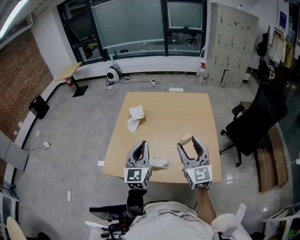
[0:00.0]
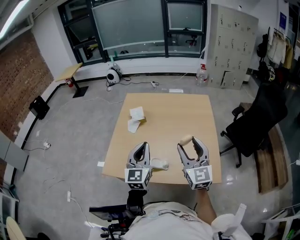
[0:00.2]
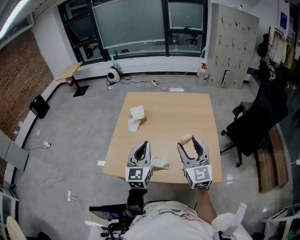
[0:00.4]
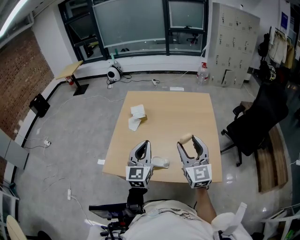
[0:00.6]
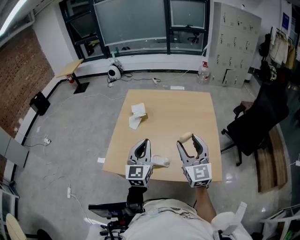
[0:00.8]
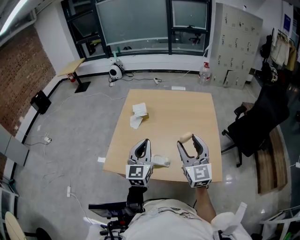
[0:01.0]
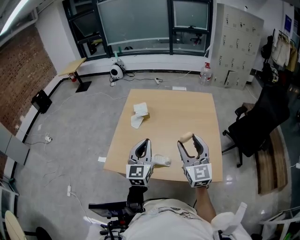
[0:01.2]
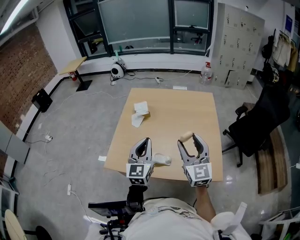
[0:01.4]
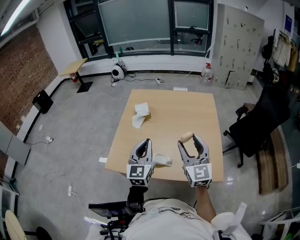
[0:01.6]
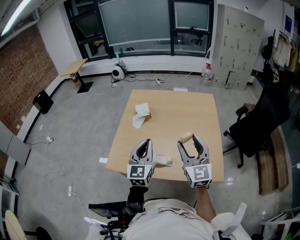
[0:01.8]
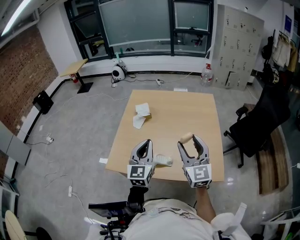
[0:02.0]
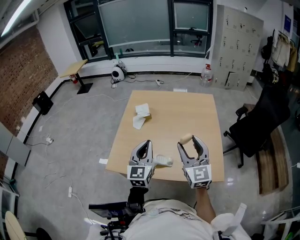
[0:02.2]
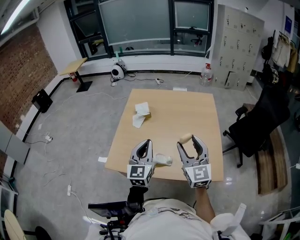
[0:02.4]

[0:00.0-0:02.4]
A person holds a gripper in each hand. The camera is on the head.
0:00.0 to 0:02.4: There are only small adjustments of the grippers.

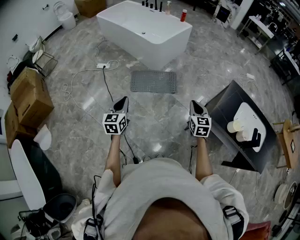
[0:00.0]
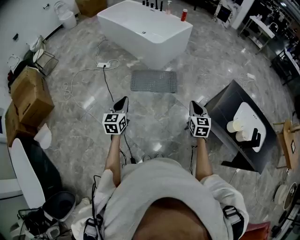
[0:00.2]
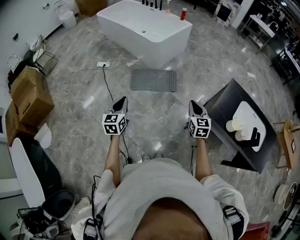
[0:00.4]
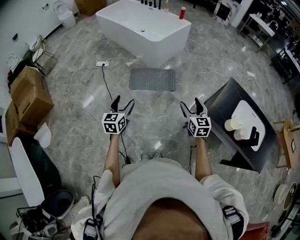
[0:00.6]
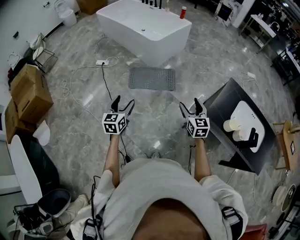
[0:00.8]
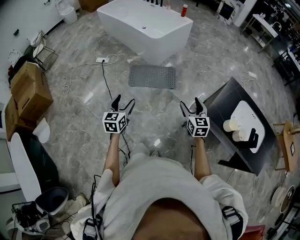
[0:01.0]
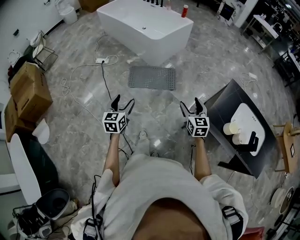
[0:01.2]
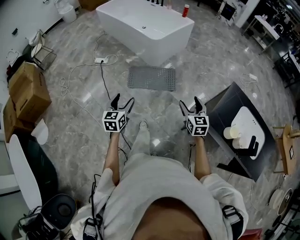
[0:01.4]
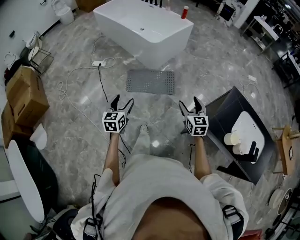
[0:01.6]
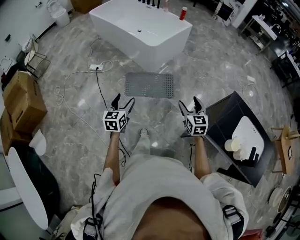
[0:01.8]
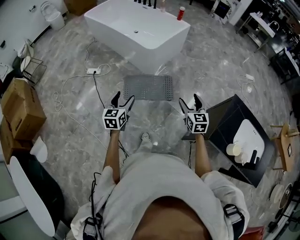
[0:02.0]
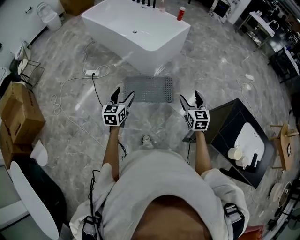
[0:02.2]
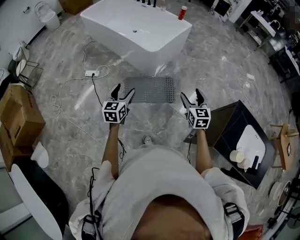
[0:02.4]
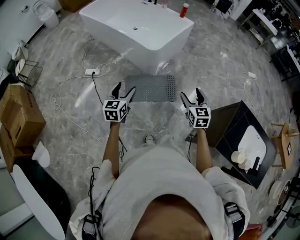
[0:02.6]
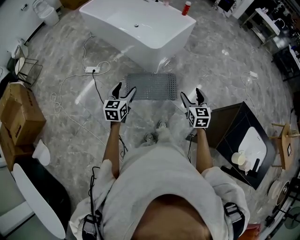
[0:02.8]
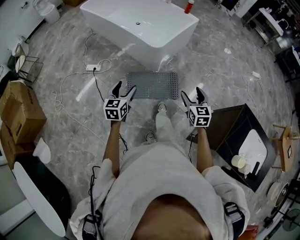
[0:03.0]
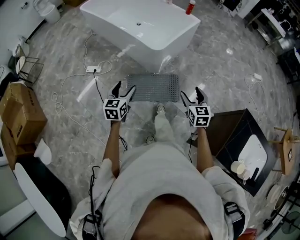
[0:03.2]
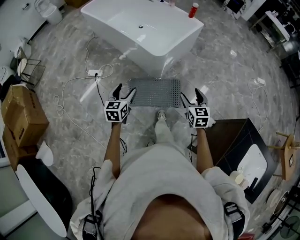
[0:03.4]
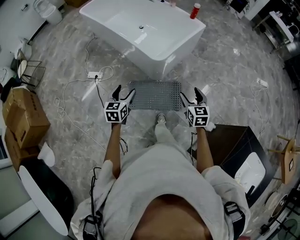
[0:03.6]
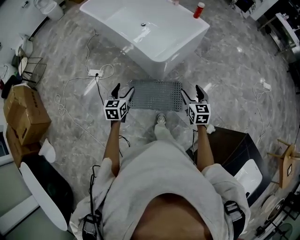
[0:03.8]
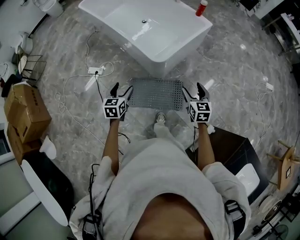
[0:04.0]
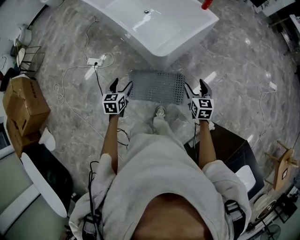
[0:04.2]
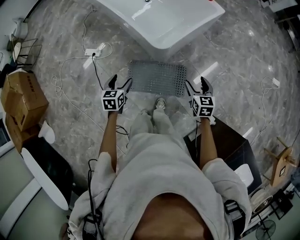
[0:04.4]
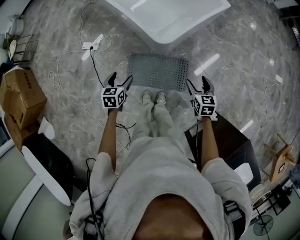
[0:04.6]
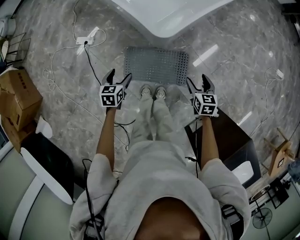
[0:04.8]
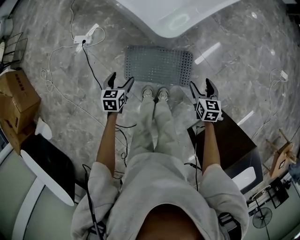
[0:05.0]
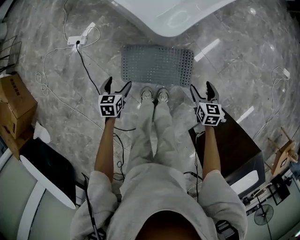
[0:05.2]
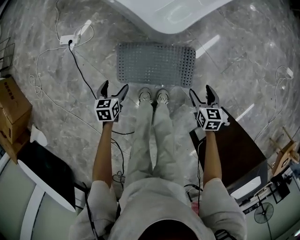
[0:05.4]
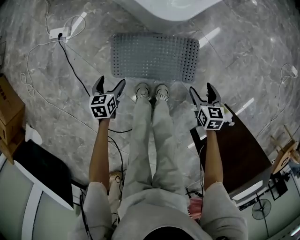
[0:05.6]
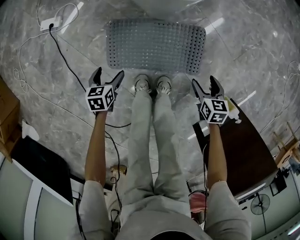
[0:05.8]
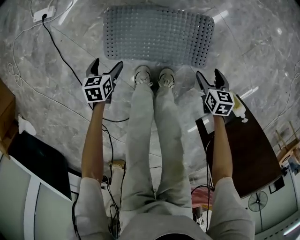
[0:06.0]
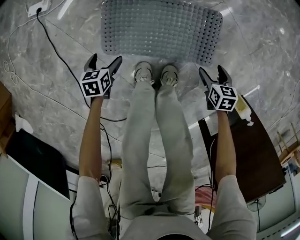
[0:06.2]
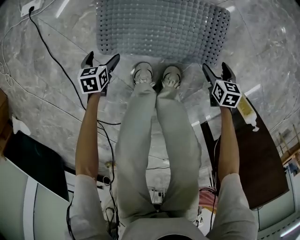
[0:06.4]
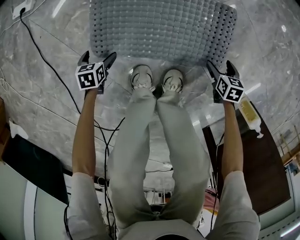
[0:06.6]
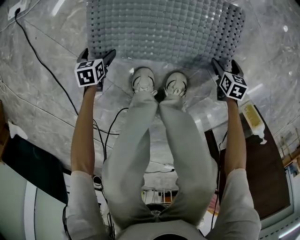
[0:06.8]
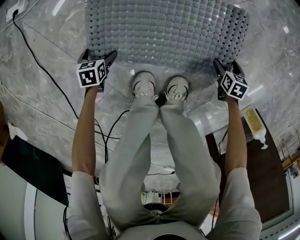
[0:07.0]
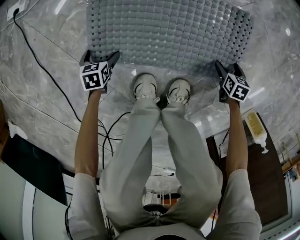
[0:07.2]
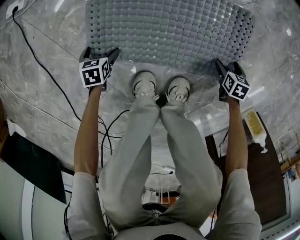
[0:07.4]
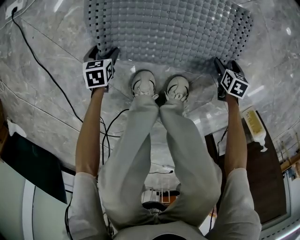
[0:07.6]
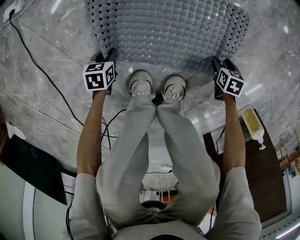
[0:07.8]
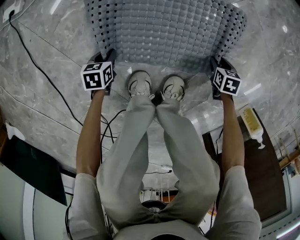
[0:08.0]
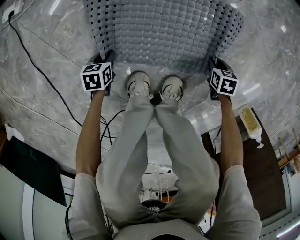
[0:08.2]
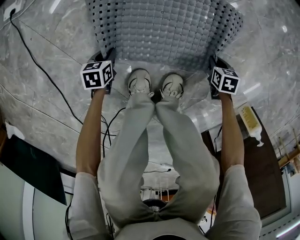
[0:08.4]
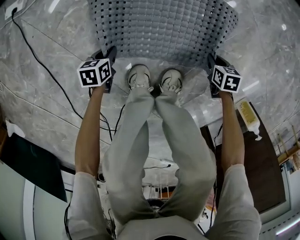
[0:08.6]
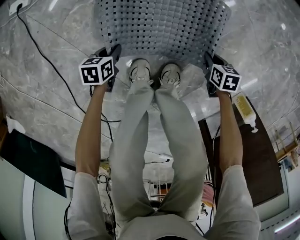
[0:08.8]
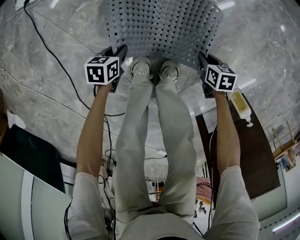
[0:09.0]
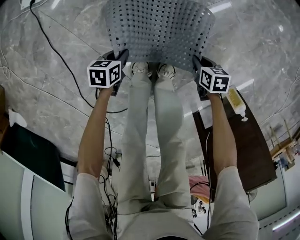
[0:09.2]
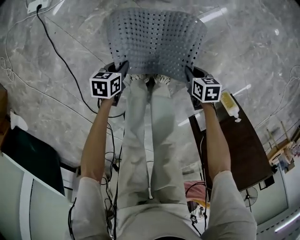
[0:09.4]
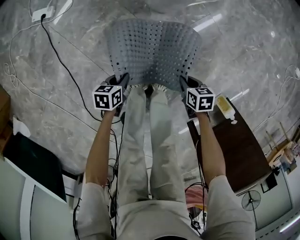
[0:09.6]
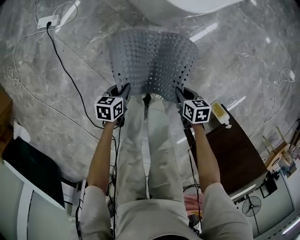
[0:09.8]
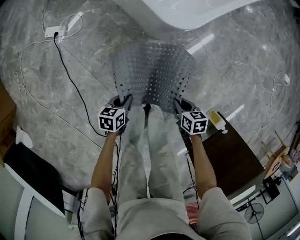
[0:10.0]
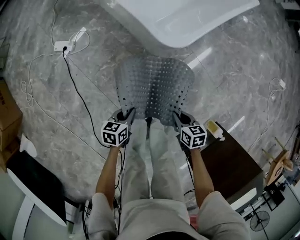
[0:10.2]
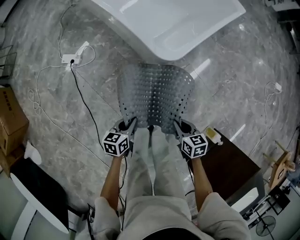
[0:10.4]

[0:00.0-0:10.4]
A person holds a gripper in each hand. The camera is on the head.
0:00.0 to 0:01.4: The left gripper ends up some 10 cm from where it was, and opens up. The right gripper is displaced forward by about 5 cm, and opens up.
0:01.4 to 0:03.0: Both grippers travel together forward, roughly 30 cm.
0:03.0 to 0:04.4: The left gripper travels forward and downward by roughly 30 cm, and rotates roughly 20 degrees. The right gripper moves forward, approximately 30 cm.
0:04.4 to 0:06.0: Both grippers move downward, approximately 50 cm. The right gripper swivels about 30 degrees. The left gripper rotates approximately 20 degrees.
0:06.0 to 0:07.4: The two grippers go some 30 cm downward.
0:07.4 to 0:09.0: The two grippers go about 15 cm upward. The right gripper closes up; the left gripper turns by roughly 20 degrees, and closes its fingers.
0:09.0 to 0:10.4: The two grippers go some 40 cm upward. The right gripper swivels approximately 20 degrees, while the left gripper turns by about 20 degrees.

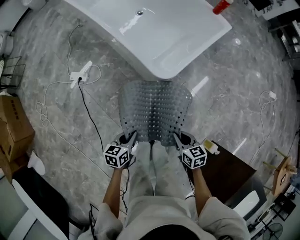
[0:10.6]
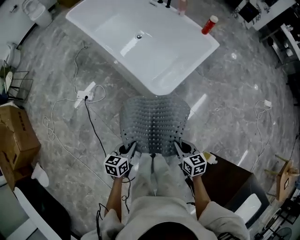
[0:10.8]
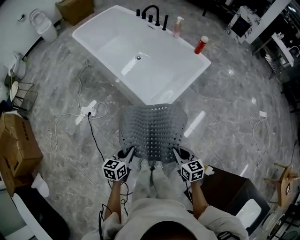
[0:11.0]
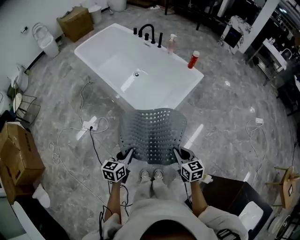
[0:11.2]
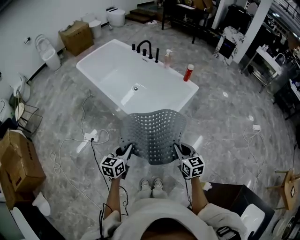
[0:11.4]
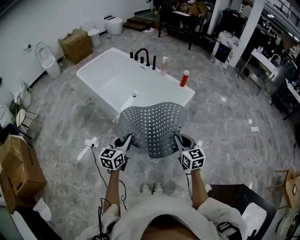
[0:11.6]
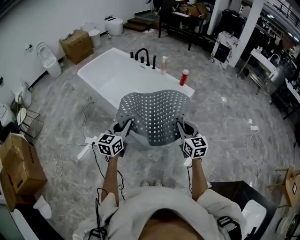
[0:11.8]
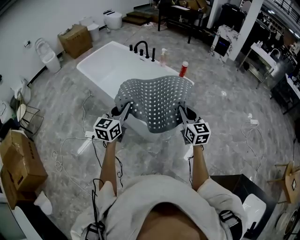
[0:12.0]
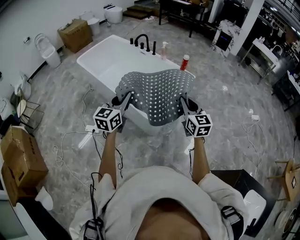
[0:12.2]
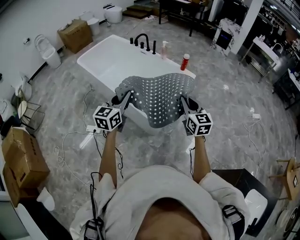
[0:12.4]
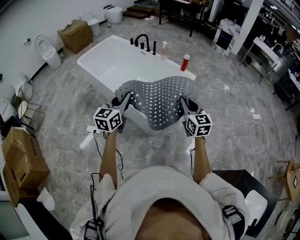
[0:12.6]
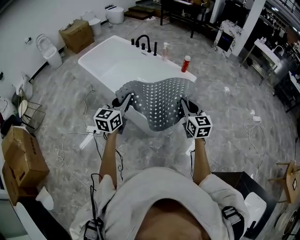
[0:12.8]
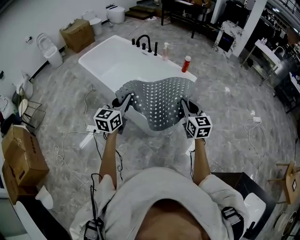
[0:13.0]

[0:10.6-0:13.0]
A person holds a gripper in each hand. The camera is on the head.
0:10.6 to 0:11.8: Both grippers travel together upward, approximately 40 cm. The left gripper turns by roughly 40 degrees, while the right gripper tips its fingers upward by some 30 degrees.
0:11.8 to 0:13.0: There are only small adjustments of the grippers.

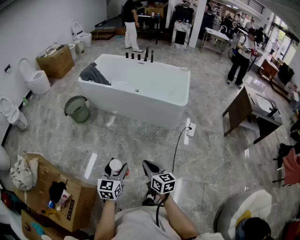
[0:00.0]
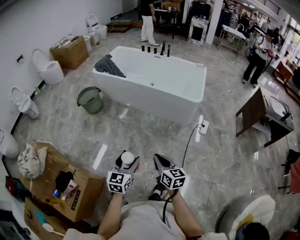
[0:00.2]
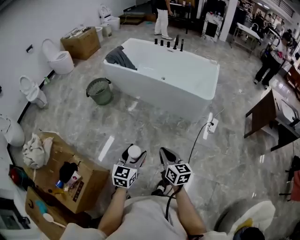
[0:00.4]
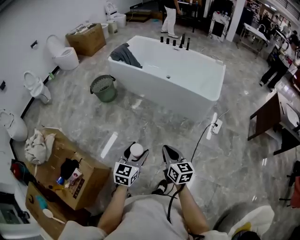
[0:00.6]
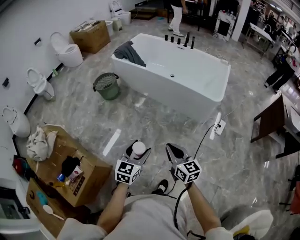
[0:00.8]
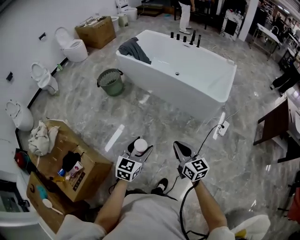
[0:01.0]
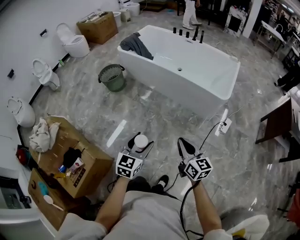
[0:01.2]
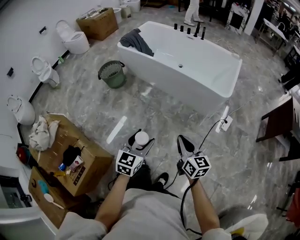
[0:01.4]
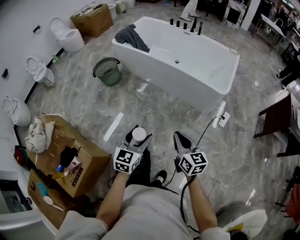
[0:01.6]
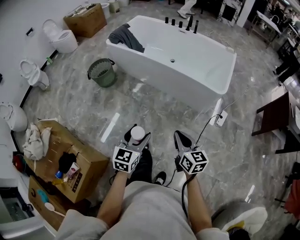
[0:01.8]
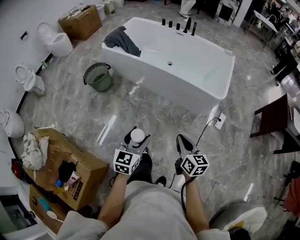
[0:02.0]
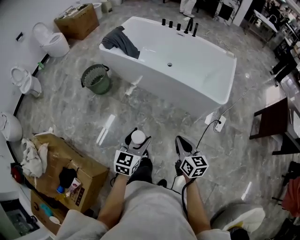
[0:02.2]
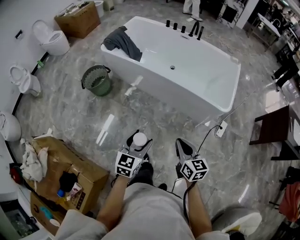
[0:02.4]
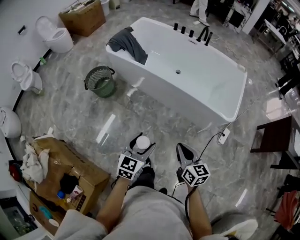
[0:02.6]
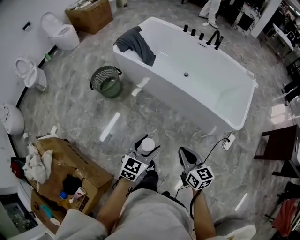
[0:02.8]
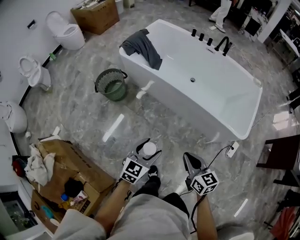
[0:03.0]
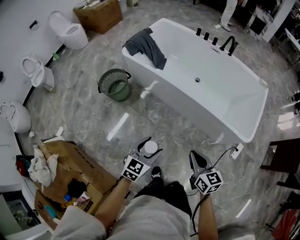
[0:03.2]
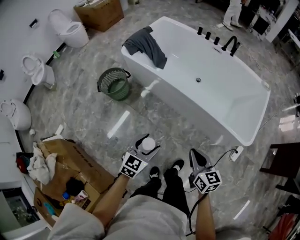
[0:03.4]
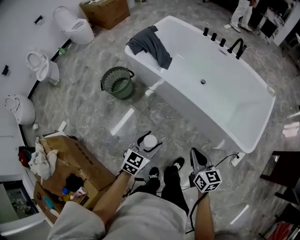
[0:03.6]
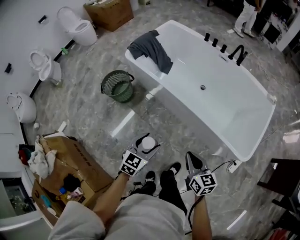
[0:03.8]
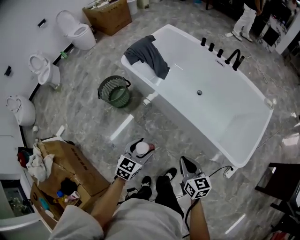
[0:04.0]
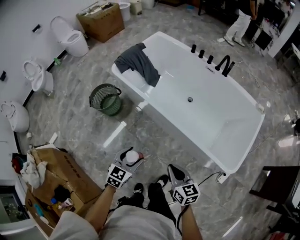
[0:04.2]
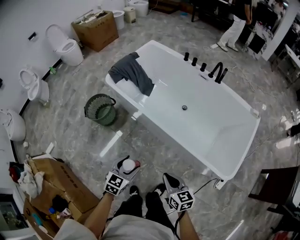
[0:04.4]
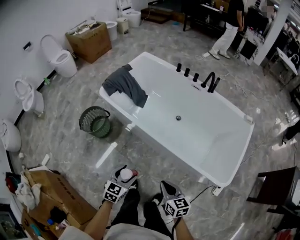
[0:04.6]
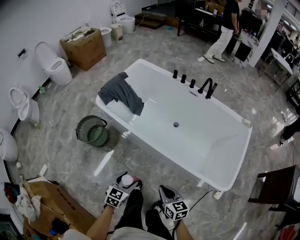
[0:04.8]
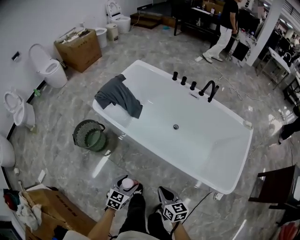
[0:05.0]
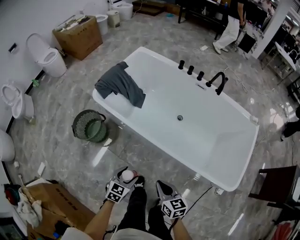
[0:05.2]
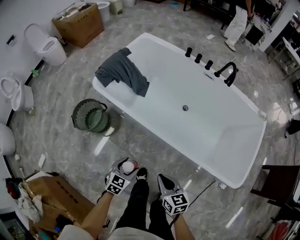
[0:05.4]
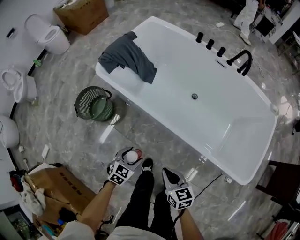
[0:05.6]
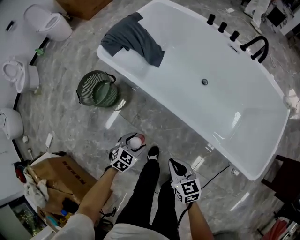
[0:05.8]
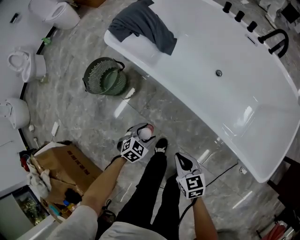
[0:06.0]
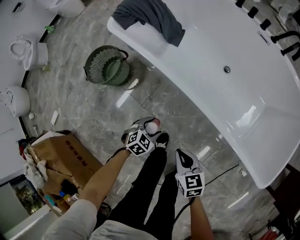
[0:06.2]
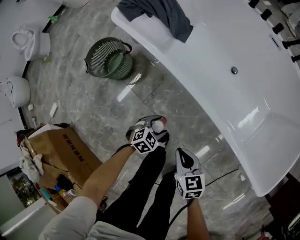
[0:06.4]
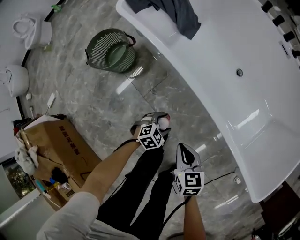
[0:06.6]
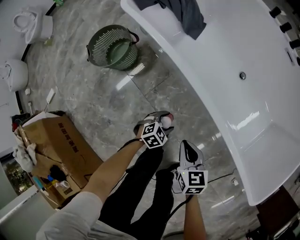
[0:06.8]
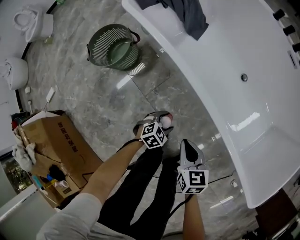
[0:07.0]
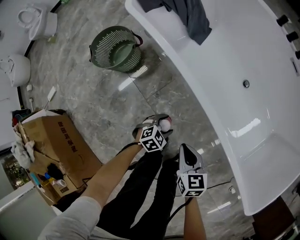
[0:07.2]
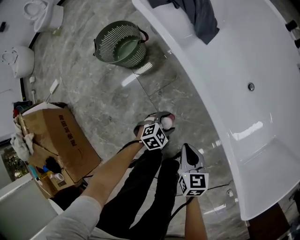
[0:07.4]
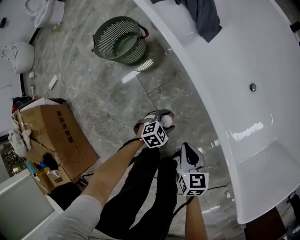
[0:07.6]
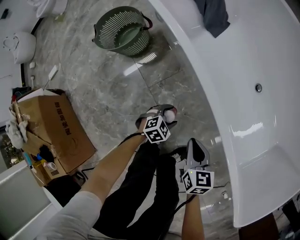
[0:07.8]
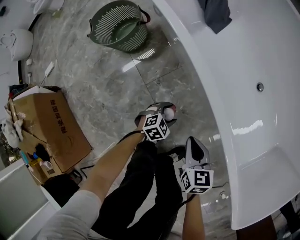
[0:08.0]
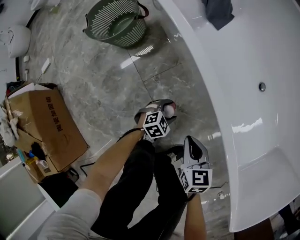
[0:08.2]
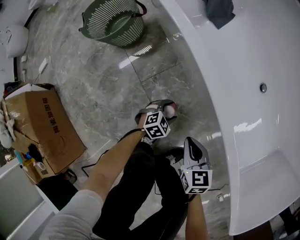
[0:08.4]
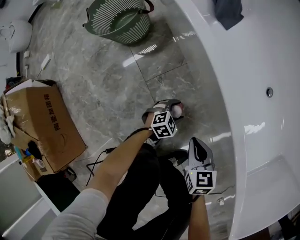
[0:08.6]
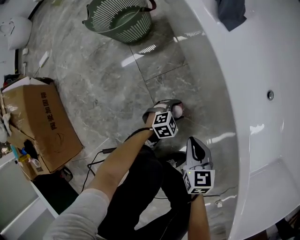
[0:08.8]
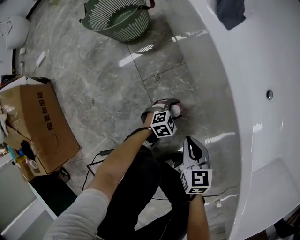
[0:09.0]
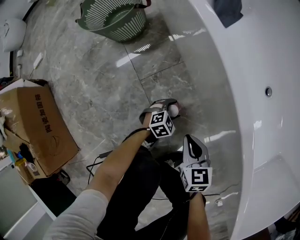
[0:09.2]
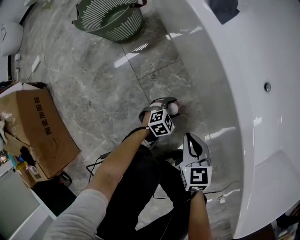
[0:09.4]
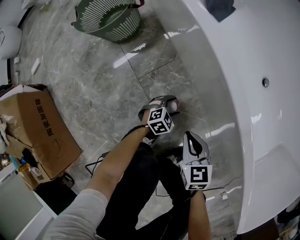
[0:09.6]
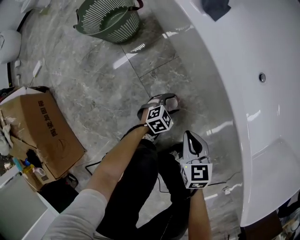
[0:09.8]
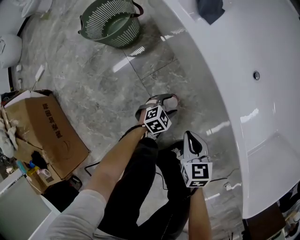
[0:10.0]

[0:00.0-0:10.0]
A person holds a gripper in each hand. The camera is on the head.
0:00.0 to 0:01.4: Both grippers move forward and to the right, approximately 15 cm.
0:01.4 to 0:02.8: The left gripper is displaced forward by about 30 cm; the right gripper goes approximately 30 cm forward and to the left.
0:02.8 to 0:04.2: The grippers both shift forward by some 20 cm.
0:04.2 to 0:05.8: The left gripper travels downward and forward by approximately 30 cm, and swivels roughly 20 degrees, while the right gripper is displaced downward, forward and to the left by some 25 cm.
0:05.8 to 0:07.2: The right gripper moves downward and forward, roughly 15 cm. The left gripper moves downward, about 20 cm.
0:07.2 to 0:08.6: The grippers both shift downward by roughly 20 cm.
0:08.6 to 0:10.0: The grippers both shift upward by some 5 cm.
